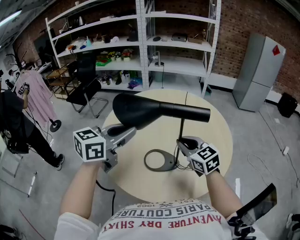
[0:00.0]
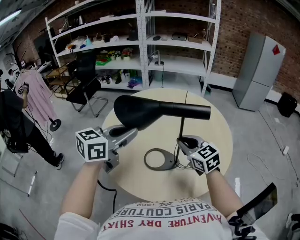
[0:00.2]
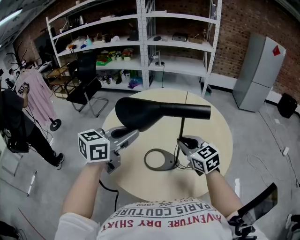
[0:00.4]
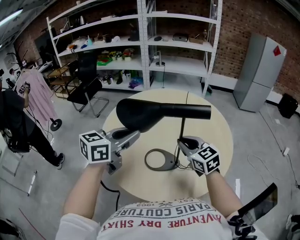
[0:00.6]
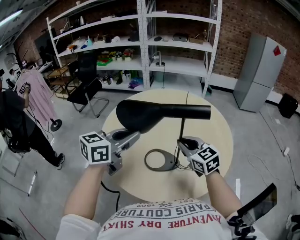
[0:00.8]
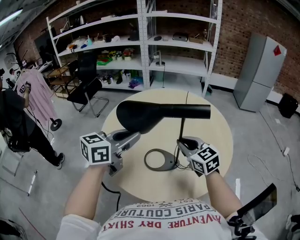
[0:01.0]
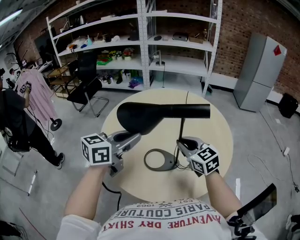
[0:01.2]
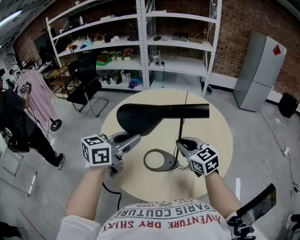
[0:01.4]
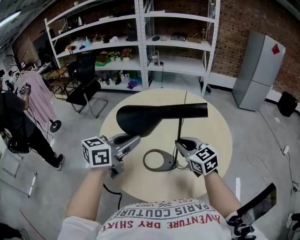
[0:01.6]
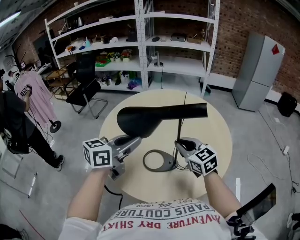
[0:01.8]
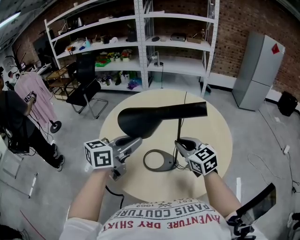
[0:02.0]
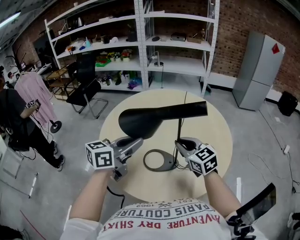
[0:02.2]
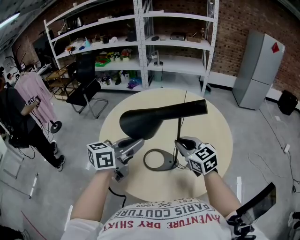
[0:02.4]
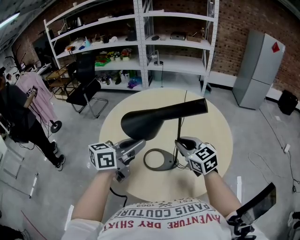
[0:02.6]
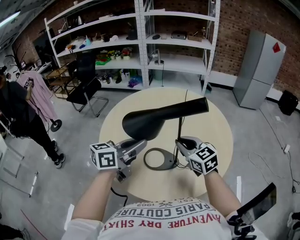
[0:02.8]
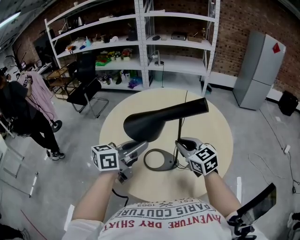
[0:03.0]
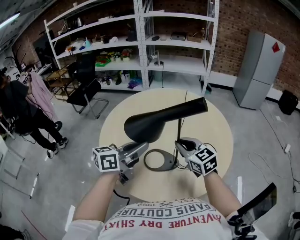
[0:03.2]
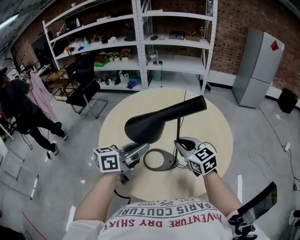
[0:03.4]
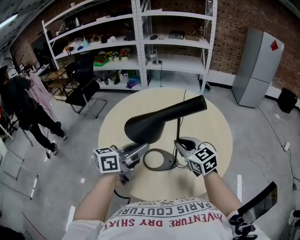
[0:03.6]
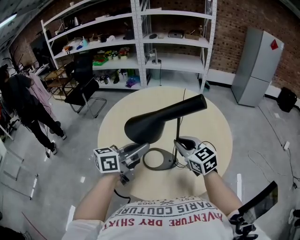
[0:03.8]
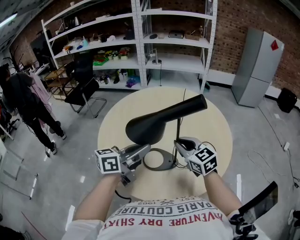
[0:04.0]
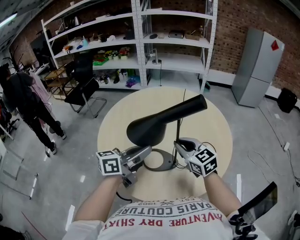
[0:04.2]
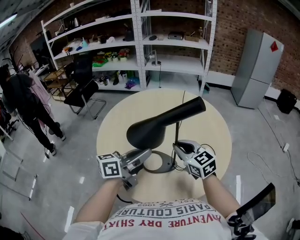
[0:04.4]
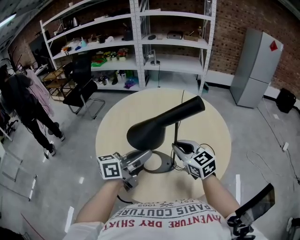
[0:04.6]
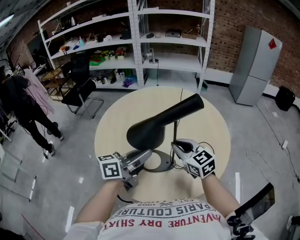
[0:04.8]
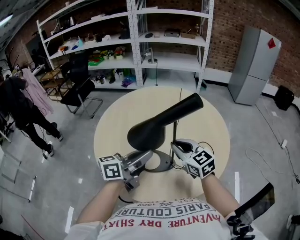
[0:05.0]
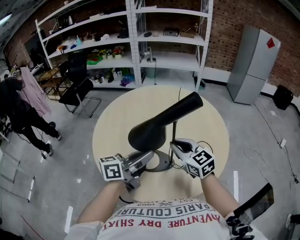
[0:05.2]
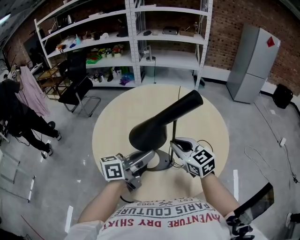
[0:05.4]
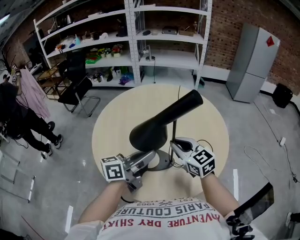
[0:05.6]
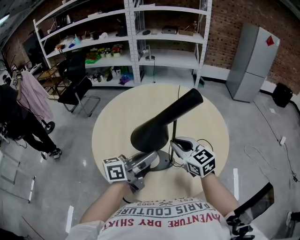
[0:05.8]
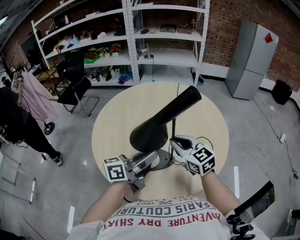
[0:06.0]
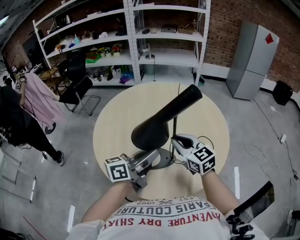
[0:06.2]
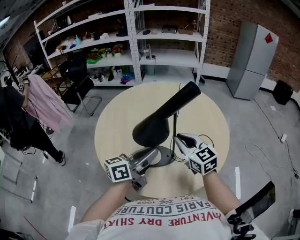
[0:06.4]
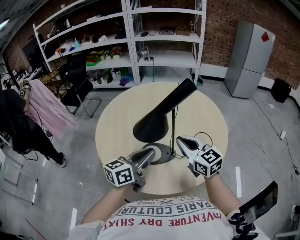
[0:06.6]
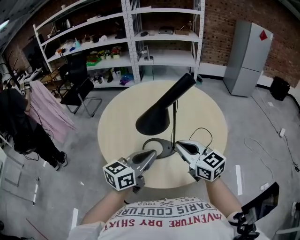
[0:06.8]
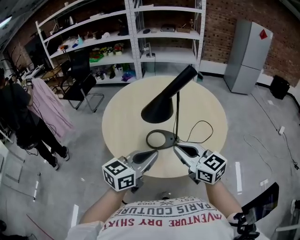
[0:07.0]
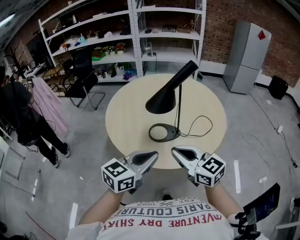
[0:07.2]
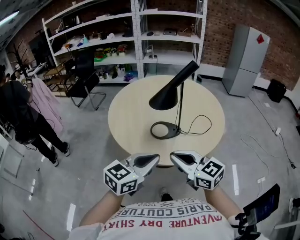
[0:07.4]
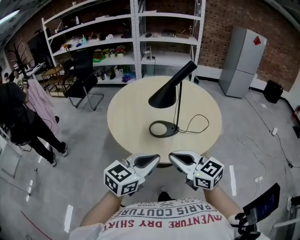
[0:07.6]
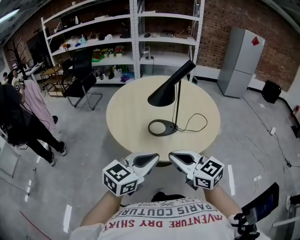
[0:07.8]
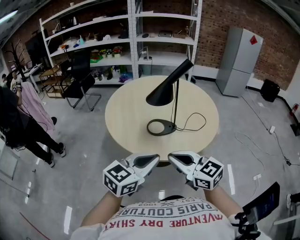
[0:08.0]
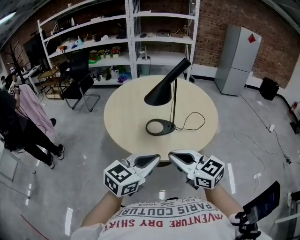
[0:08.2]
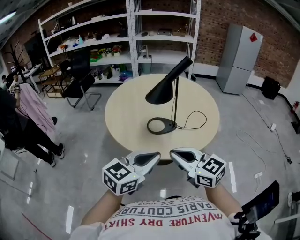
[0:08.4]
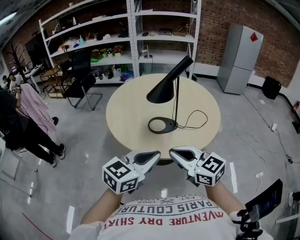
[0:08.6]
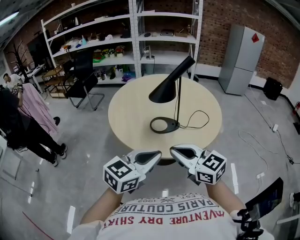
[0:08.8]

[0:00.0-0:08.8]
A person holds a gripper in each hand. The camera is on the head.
0:00.0 to 0:01.4: The grippers make only small movements.
0:01.4 to 0:03.0: The left gripper ends up approximately 5 cm from where it was.
0:03.0 to 0:04.4: The grippers stay close to where they were, moving slightly.
0:04.4 to 0:05.8: There are only small adjustments of the grippers.
0:05.8 to 0:07.4: The grippers both shift backward by some 25 cm. The left gripper changes its angle by approximately 40 degrees.
0:07.4 to 0:08.8: The grippers stay close to where they were, moving slightly.

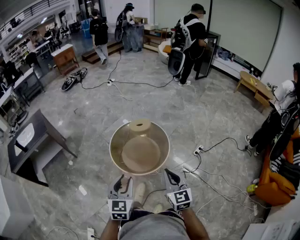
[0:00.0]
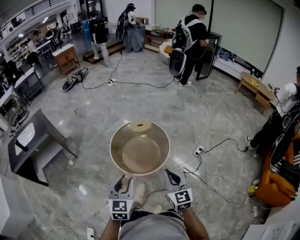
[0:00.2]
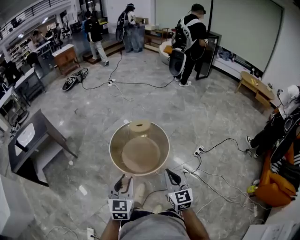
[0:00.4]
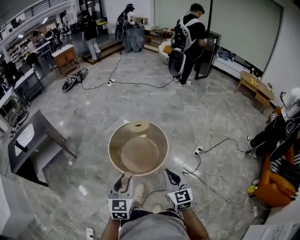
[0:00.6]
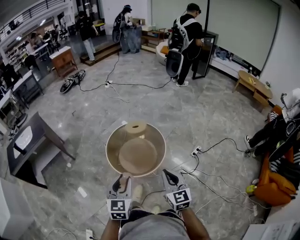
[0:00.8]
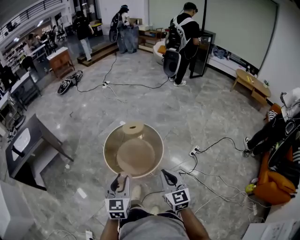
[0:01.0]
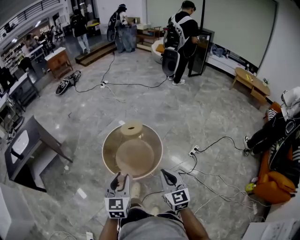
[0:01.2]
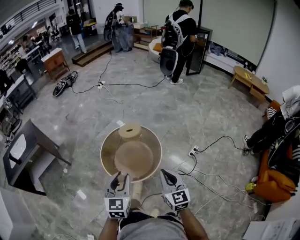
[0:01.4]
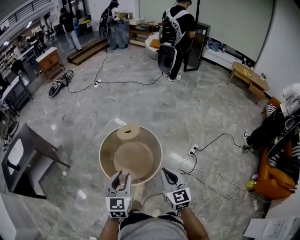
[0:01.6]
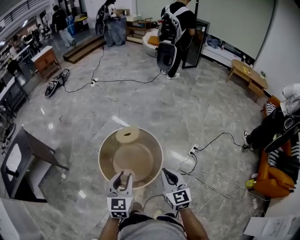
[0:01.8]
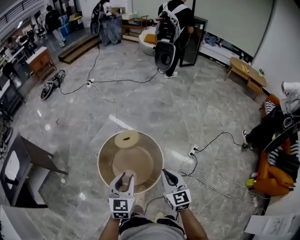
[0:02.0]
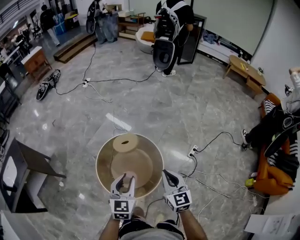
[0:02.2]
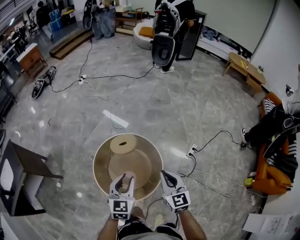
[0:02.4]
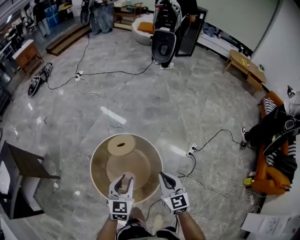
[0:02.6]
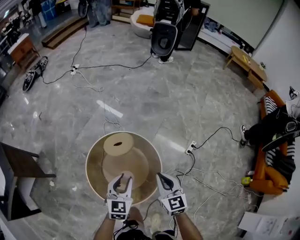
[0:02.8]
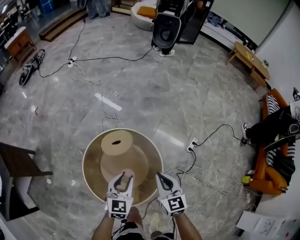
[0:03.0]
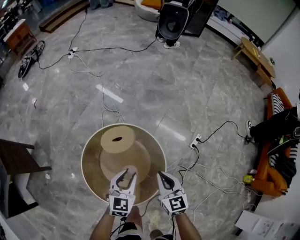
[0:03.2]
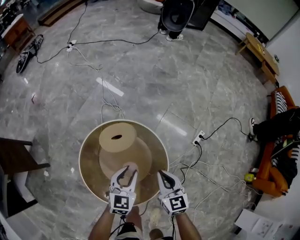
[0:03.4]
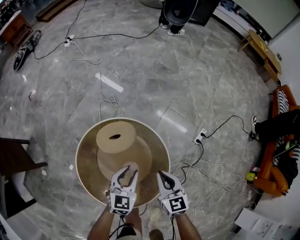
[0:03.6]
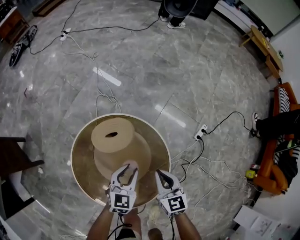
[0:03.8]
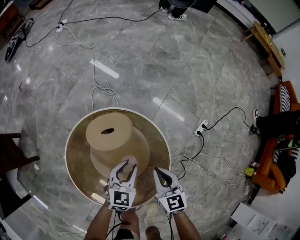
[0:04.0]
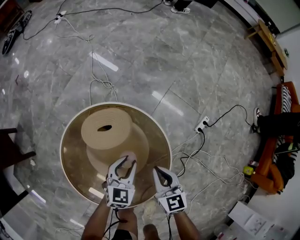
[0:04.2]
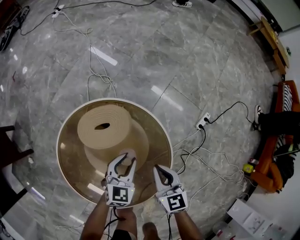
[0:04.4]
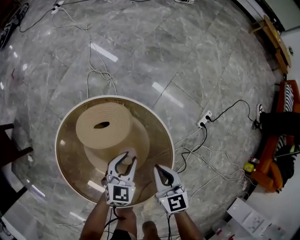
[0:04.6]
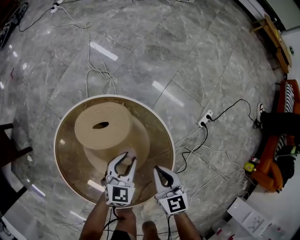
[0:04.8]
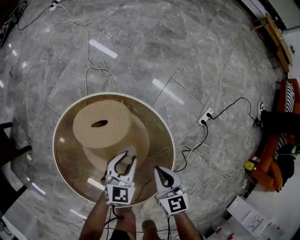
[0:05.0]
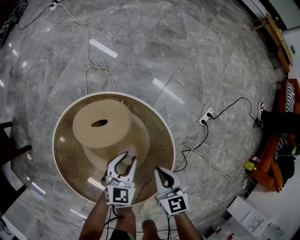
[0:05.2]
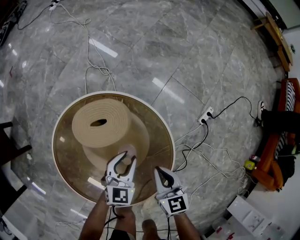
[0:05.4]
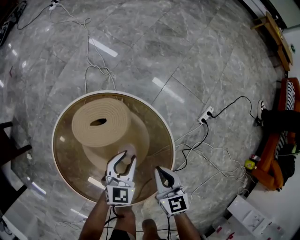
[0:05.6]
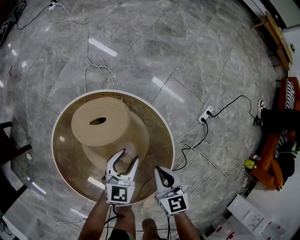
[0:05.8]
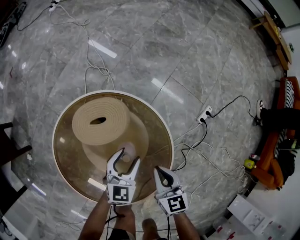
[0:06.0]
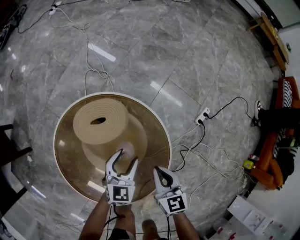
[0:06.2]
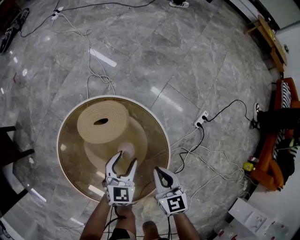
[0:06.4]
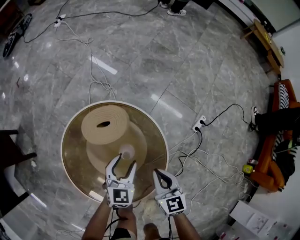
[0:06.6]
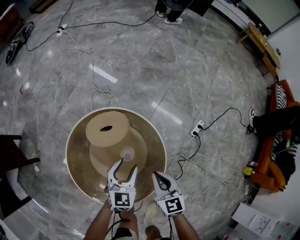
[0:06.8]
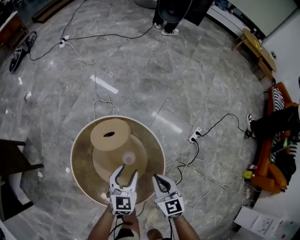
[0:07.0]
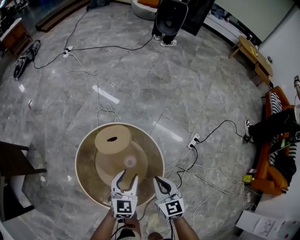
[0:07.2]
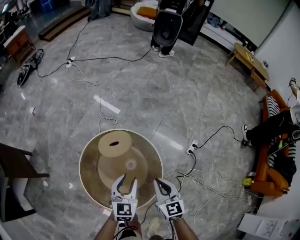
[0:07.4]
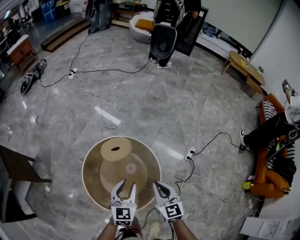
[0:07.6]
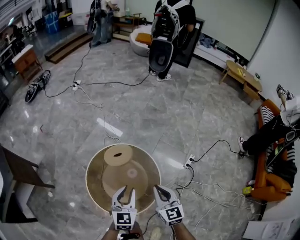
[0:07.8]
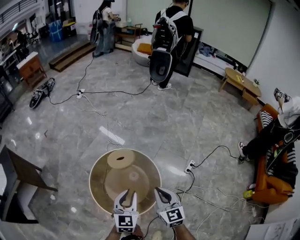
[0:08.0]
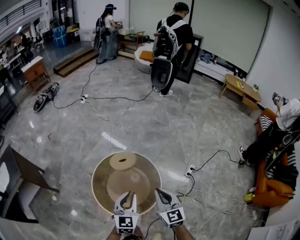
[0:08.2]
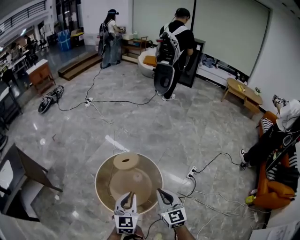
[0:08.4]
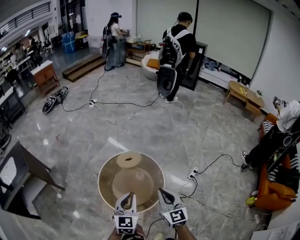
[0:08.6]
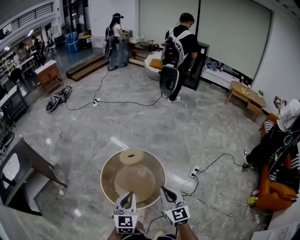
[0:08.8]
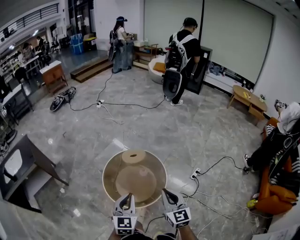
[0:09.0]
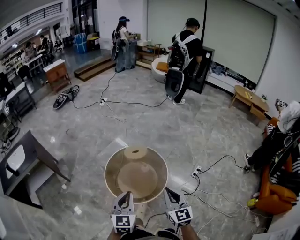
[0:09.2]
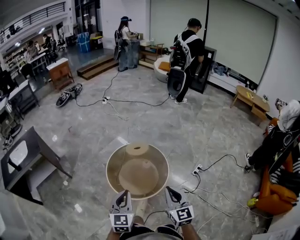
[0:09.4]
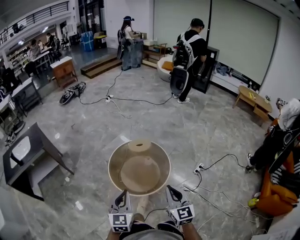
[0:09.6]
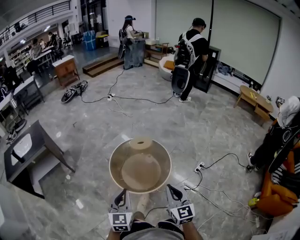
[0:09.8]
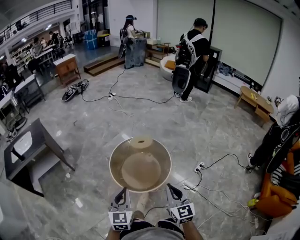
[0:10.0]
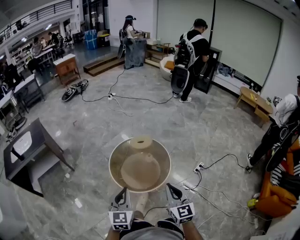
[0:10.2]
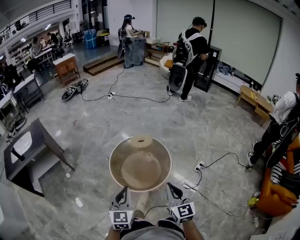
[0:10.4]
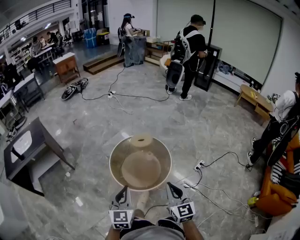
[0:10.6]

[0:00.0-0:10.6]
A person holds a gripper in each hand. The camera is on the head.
0:00.0 to 0:01.6: Both grippers travel together forward and to the right, some 15 cm.
0:01.6 to 0:03.0: The two grippers go some 35 cm forward and downward.
0:03.0 to 0:04.6: The two grippers go some 30 cm downward.
0:04.6 to 0:06.0: The left gripper opens up.
0:06.0 to 0:07.6: The grippers both shift upward by roughly 30 cm. The left gripper closes its fingers.
0:07.6 to 0:09.0: The grippers both shift backward and upward by about 30 cm. The left gripper closes its fingers.
0:09.0 to 0:10.6: The left gripper travels backward and to the left by some 15 cm, while the right gripper travels backward by about 10 cm.

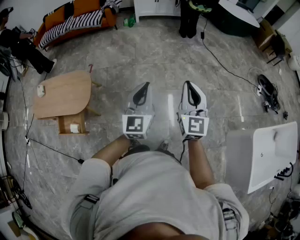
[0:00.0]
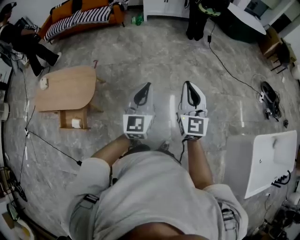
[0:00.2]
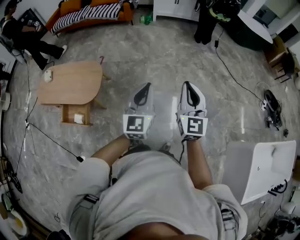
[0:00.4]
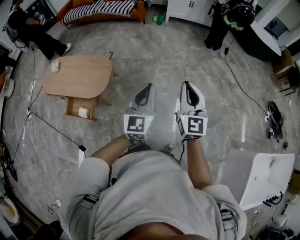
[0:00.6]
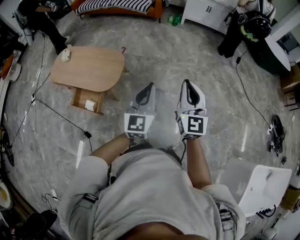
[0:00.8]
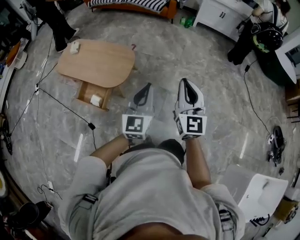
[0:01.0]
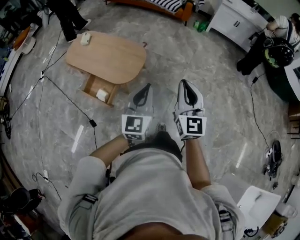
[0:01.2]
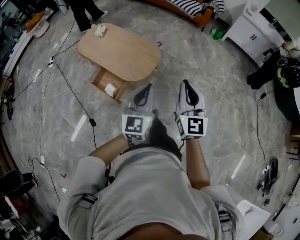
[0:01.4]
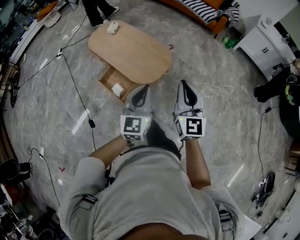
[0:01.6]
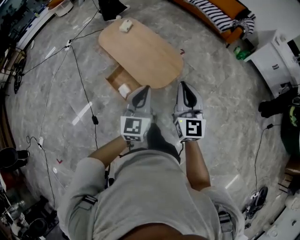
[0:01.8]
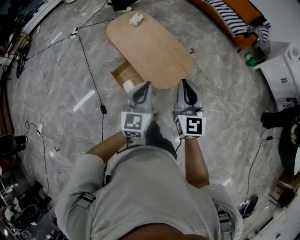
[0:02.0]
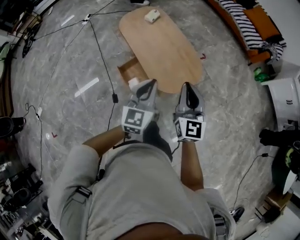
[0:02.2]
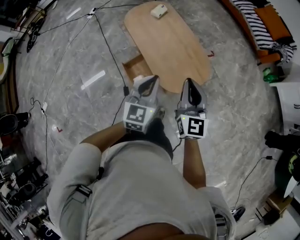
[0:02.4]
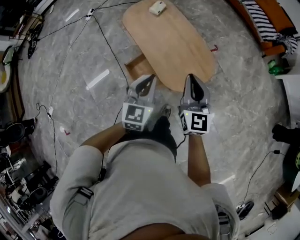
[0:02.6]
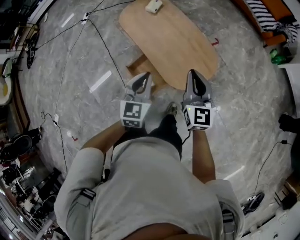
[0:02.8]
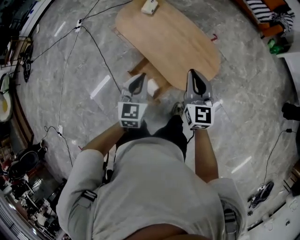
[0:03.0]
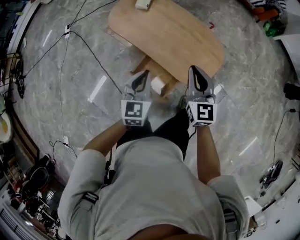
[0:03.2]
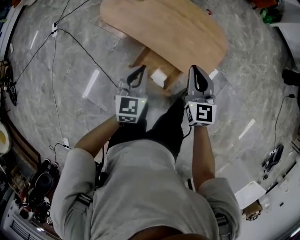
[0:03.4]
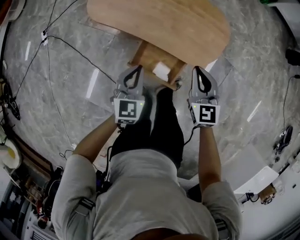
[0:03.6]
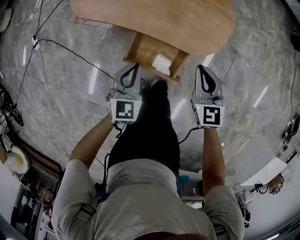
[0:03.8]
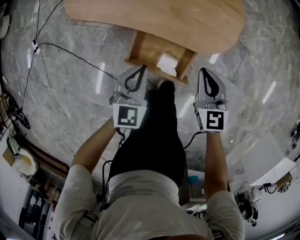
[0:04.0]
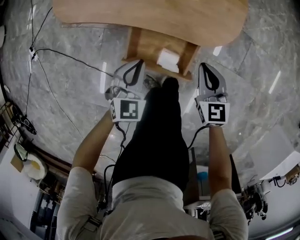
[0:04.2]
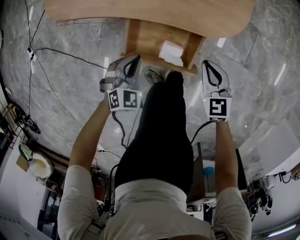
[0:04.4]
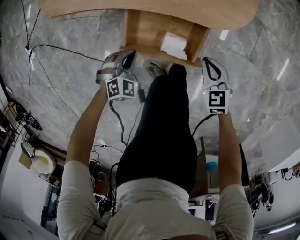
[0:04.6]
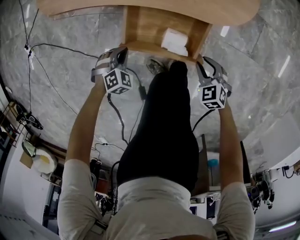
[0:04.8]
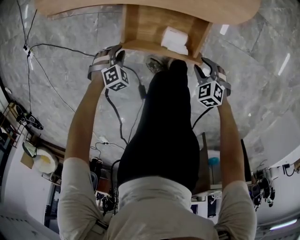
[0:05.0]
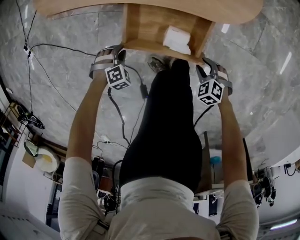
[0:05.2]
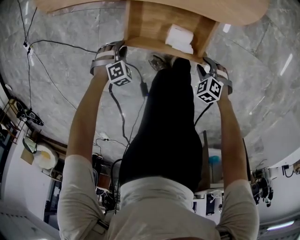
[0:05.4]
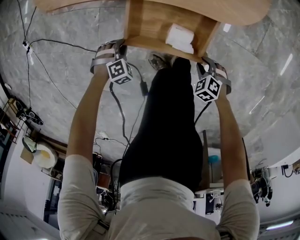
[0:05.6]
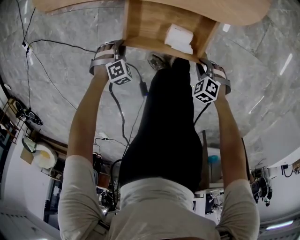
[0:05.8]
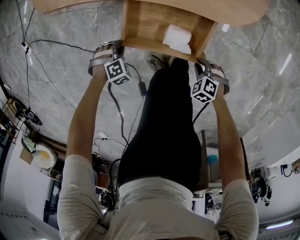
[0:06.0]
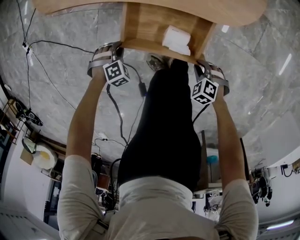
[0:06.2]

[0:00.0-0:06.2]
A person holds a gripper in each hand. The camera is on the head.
0:00.0 to 0:01.6: The two grippers travel together, about 50 cm. The right gripper swivels some 50 degrees; the left gripper changes its angle by about 40 degrees.
0:01.6 to 0:03.2: Both grippers are carried forward and to the left, some 40 cm. The grippers both shift downward by about 15 cm. The left gripper rotates roughly 20 degrees.
0:03.2 to 0:04.6: The grippers both shift downward by roughly 40 cm. The left gripper rolls clockwise, seen from behind, by some 60 degrees, while the right gripper tilts its fingers approximately 30 degrees downward.
0:04.6 to 0:06.2: The grippers both shift downward by approximately 10 cm. The left gripper turns by some 30 degrees, and opens its fingers. The right gripper angles its fingers downward, by some 30 degrees, and opens, then closes once more.
